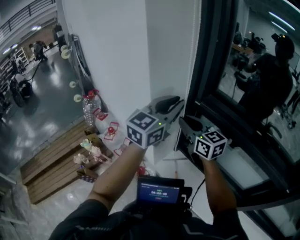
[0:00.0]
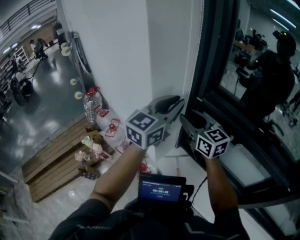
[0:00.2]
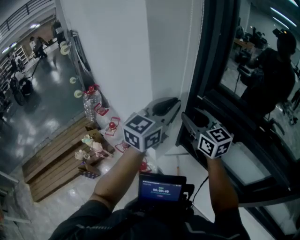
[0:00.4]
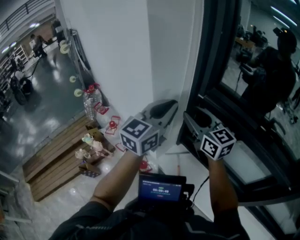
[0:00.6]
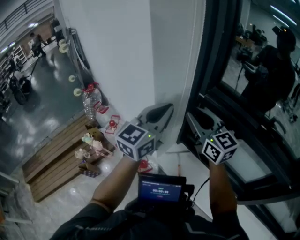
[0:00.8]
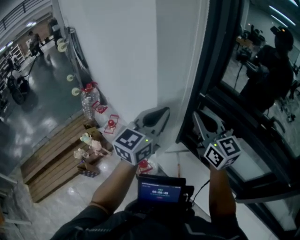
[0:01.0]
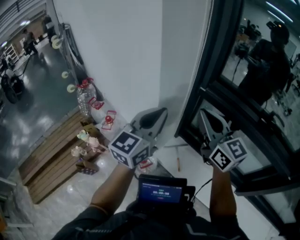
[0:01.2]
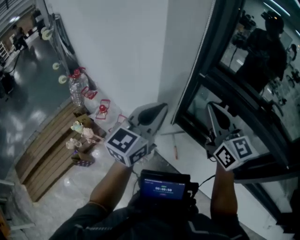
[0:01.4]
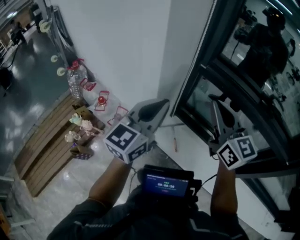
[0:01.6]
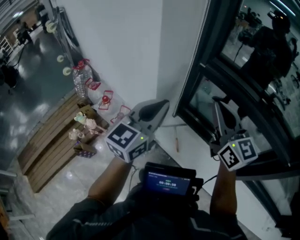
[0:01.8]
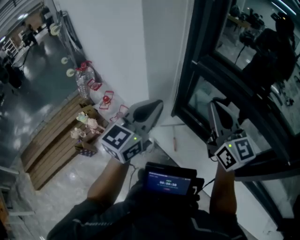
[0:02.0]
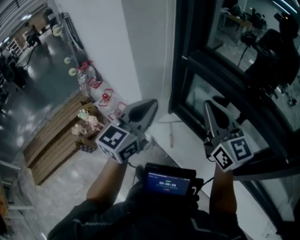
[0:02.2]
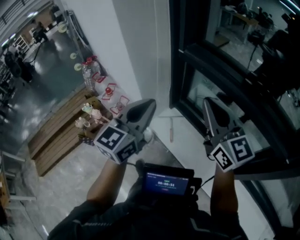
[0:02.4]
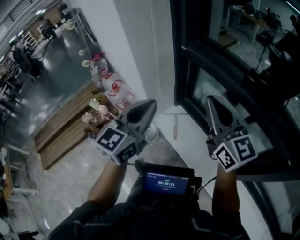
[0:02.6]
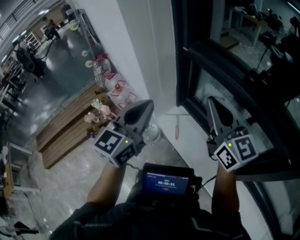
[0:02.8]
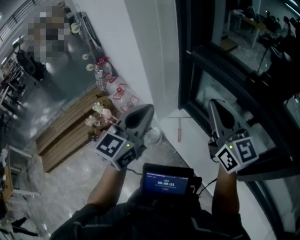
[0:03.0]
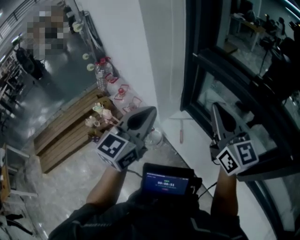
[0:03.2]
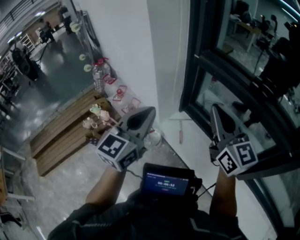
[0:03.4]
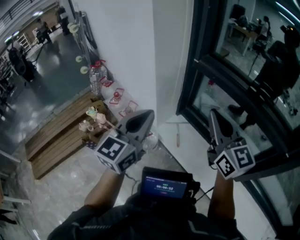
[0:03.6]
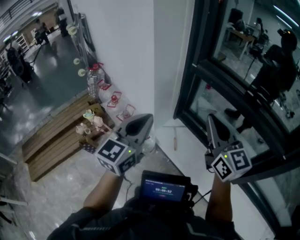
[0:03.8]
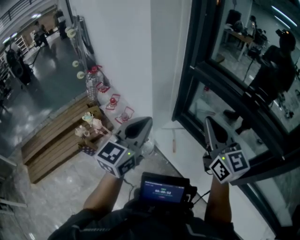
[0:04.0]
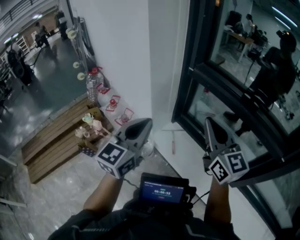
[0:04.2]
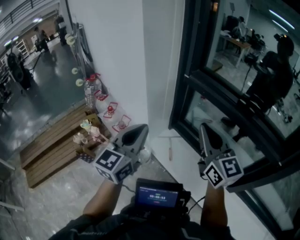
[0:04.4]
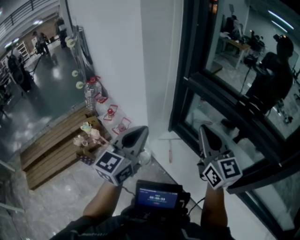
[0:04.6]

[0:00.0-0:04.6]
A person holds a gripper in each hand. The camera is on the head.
0:00.0 to 0:01.6: The left gripper moves backward, downward and to the left, about 15 cm; the right gripper shifts roughly 10 cm backward, and opens and closes again.
0:01.6 to 0:03.0: The two grippers go approximately 20 cm backward and to the right.
0:03.0 to 0:04.6: Both grippers travel together to the left, roughly 5 cm.

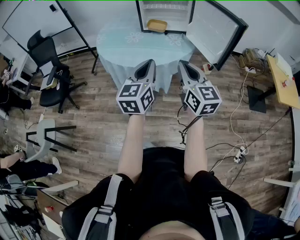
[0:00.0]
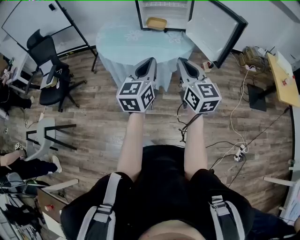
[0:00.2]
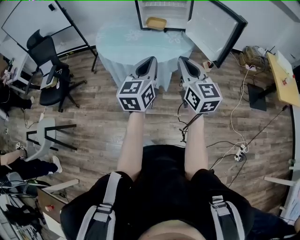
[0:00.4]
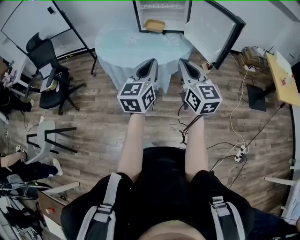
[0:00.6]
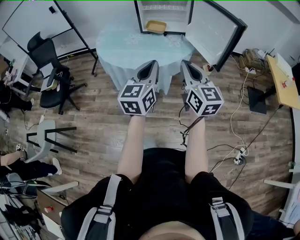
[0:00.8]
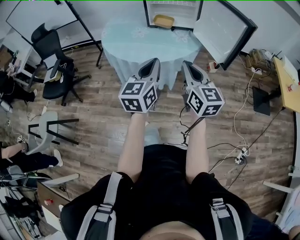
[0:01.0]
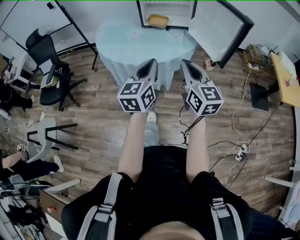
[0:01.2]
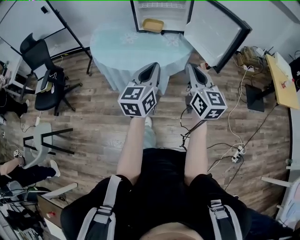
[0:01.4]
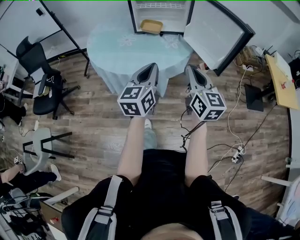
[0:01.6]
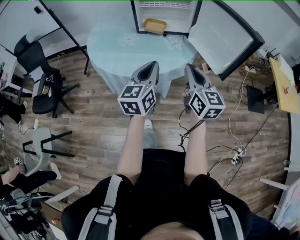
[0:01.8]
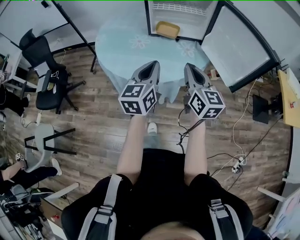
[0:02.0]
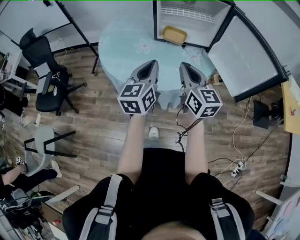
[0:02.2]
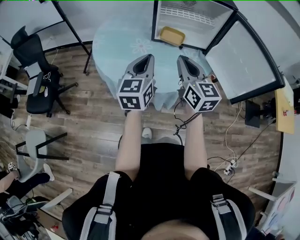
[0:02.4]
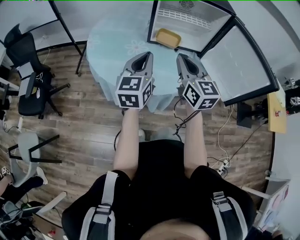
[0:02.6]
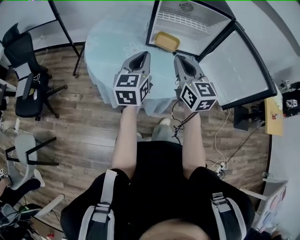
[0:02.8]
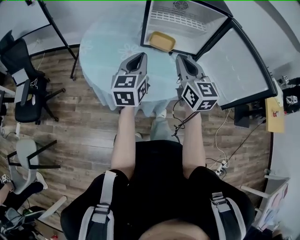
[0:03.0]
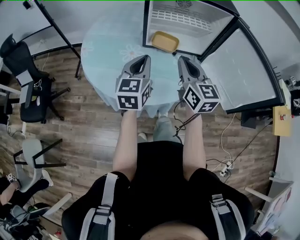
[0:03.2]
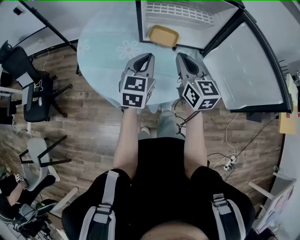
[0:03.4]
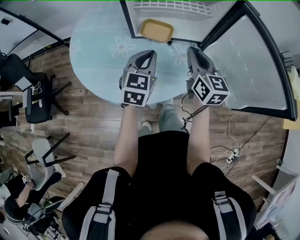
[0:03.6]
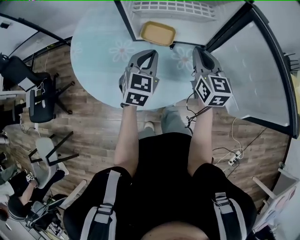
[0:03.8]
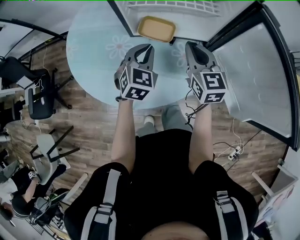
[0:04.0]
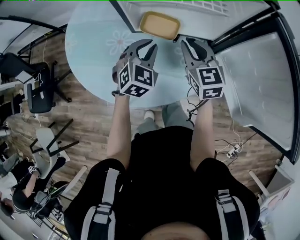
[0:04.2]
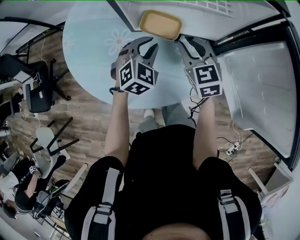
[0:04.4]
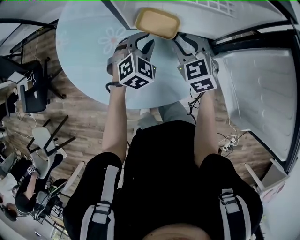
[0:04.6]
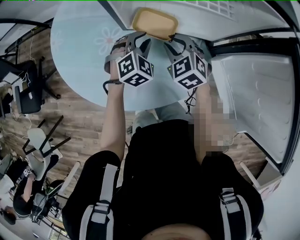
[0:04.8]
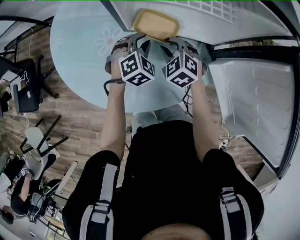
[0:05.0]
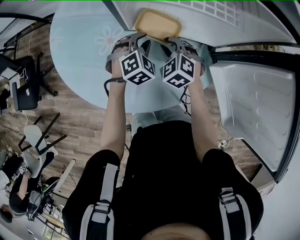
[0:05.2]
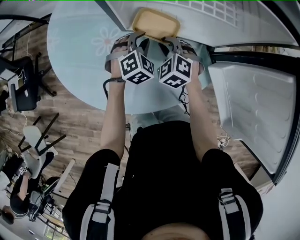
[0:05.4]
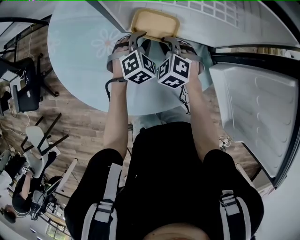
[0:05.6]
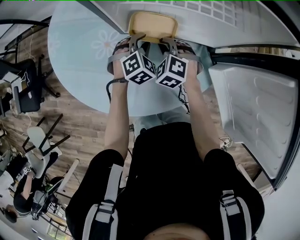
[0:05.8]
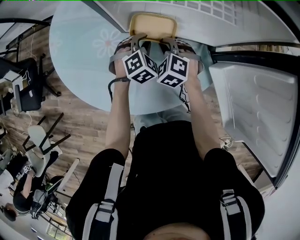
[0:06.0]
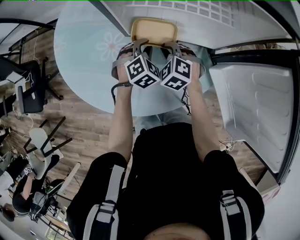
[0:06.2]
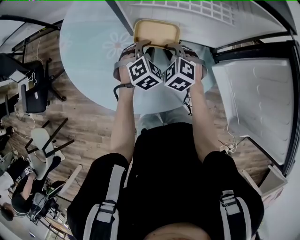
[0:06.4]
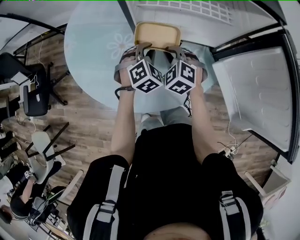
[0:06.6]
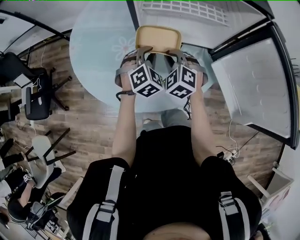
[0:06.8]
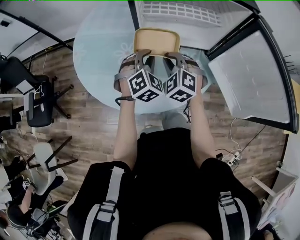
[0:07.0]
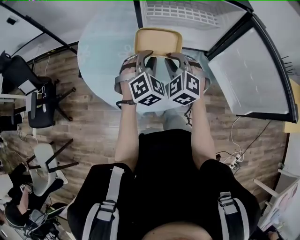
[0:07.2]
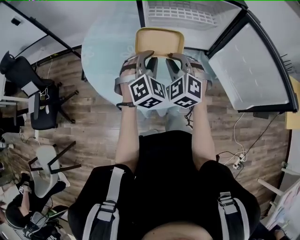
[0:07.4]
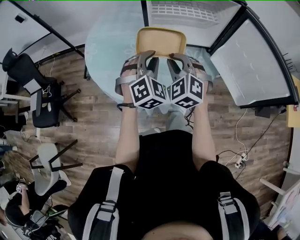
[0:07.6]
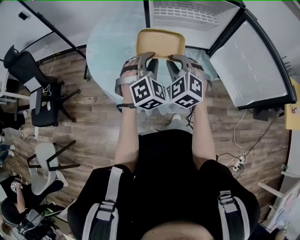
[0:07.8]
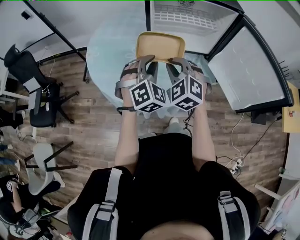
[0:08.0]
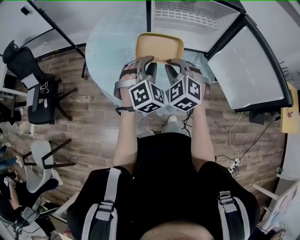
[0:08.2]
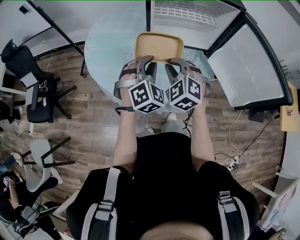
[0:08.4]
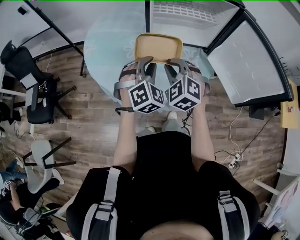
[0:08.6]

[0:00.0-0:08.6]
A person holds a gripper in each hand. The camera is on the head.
0:00.0 to 0:01.4: The left gripper shifts by some 5 cm; the right gripper moves some 5 cm.
0:01.4 to 0:02.8: Both grippers move forward and to the left, about 35 cm.
0:02.8 to 0:04.4: Both grippers move forward, downward and to the right, approximately 35 cm. The left gripper tilts its fingers some 30 degrees downward, and opens its fingers; the right gripper changes its angle by approximately 20 degrees, and opens.
0:04.4 to 0:05.8: The right gripper is displaced downward by approximately 15 cm, and swivels roughly 40 degrees. The left gripper travels downward and forward by approximately 15 cm.
0:05.8 to 0:07.2: The grippers both shift upward and backward by some 25 cm.
0:07.2 to 0:08.6: The two grippers go approximately 10 cm backward.

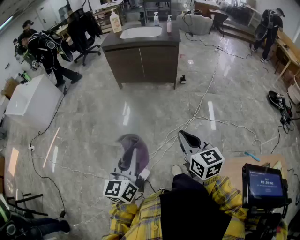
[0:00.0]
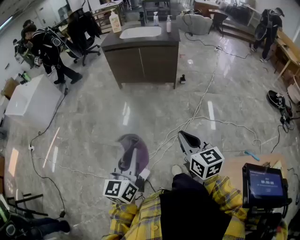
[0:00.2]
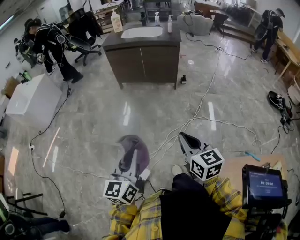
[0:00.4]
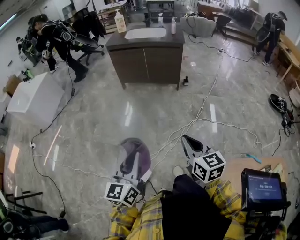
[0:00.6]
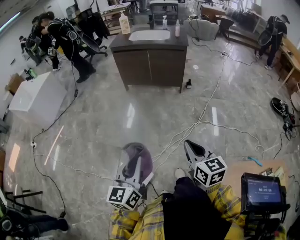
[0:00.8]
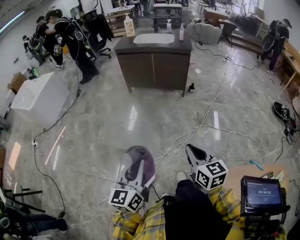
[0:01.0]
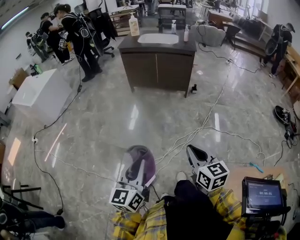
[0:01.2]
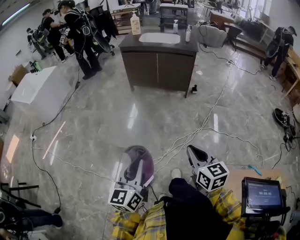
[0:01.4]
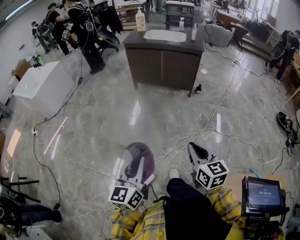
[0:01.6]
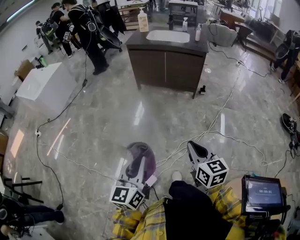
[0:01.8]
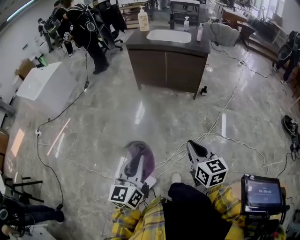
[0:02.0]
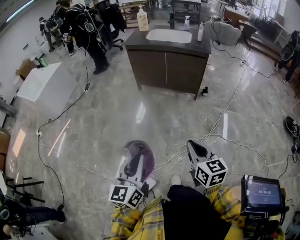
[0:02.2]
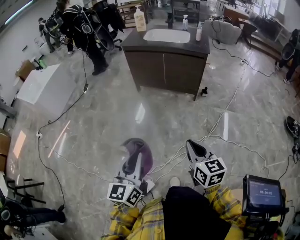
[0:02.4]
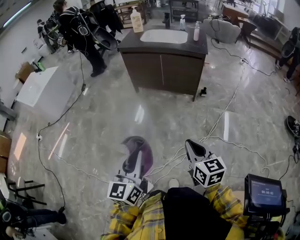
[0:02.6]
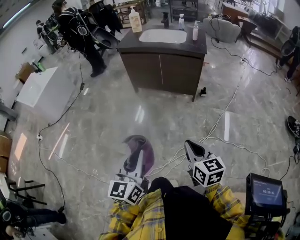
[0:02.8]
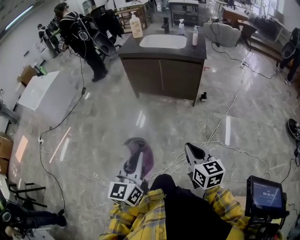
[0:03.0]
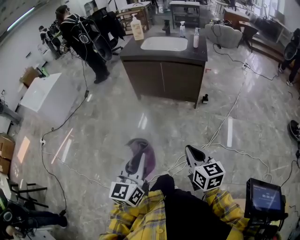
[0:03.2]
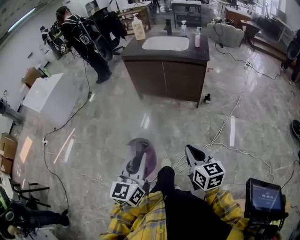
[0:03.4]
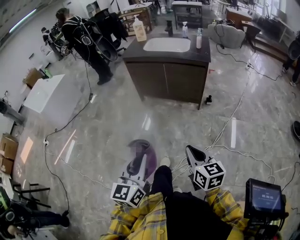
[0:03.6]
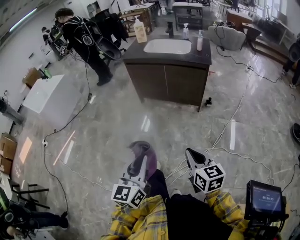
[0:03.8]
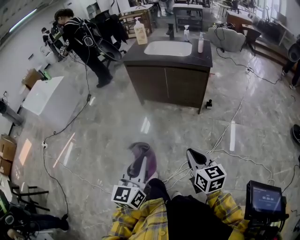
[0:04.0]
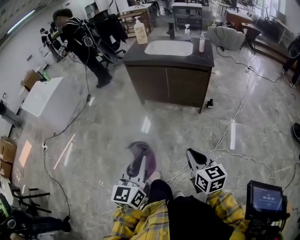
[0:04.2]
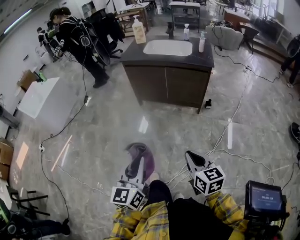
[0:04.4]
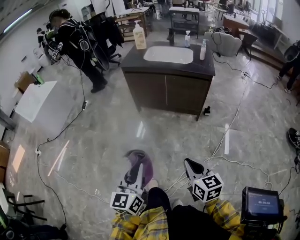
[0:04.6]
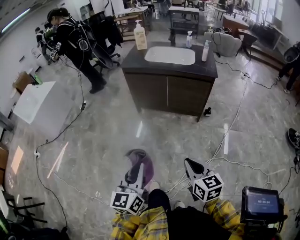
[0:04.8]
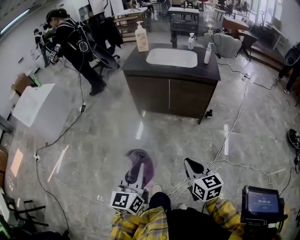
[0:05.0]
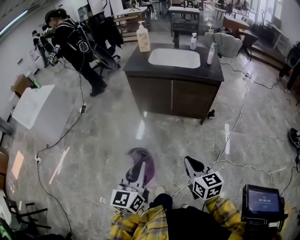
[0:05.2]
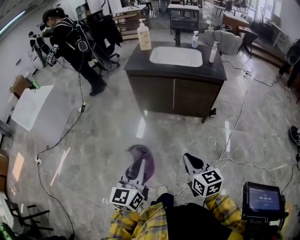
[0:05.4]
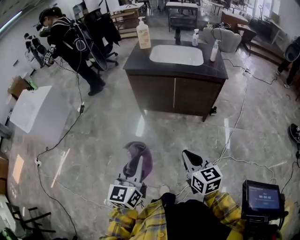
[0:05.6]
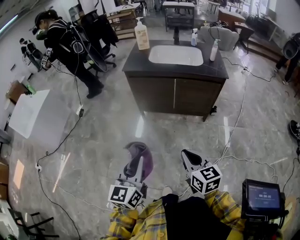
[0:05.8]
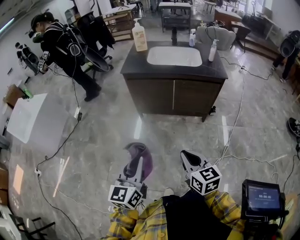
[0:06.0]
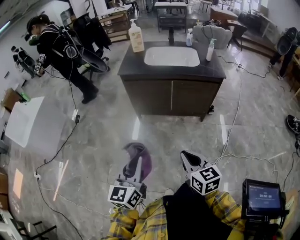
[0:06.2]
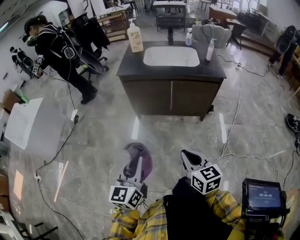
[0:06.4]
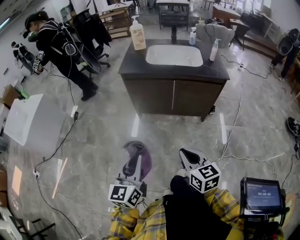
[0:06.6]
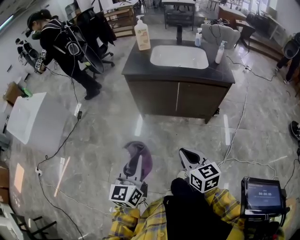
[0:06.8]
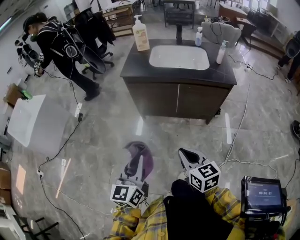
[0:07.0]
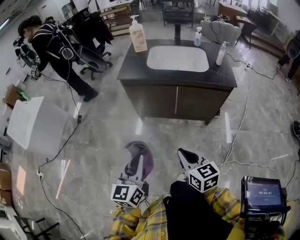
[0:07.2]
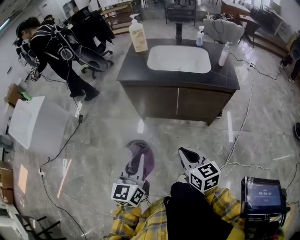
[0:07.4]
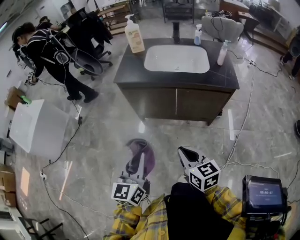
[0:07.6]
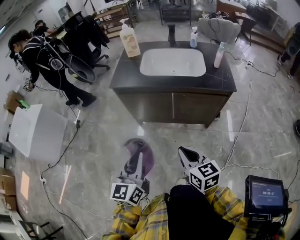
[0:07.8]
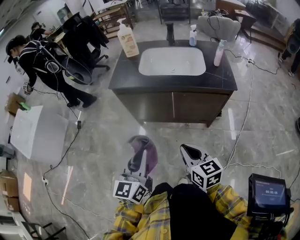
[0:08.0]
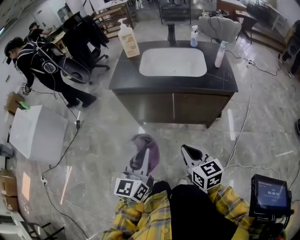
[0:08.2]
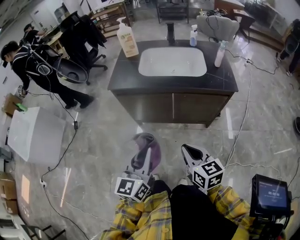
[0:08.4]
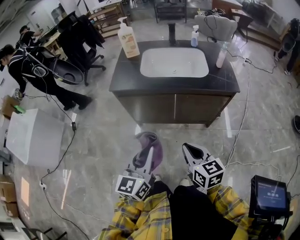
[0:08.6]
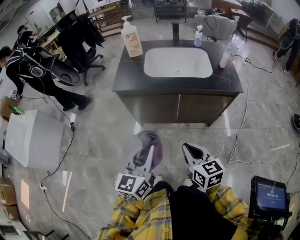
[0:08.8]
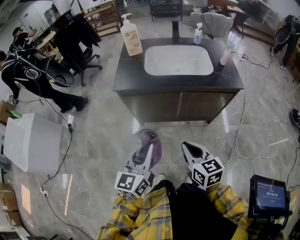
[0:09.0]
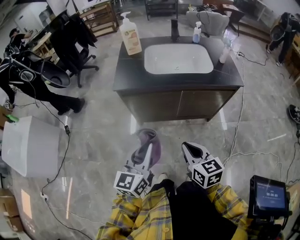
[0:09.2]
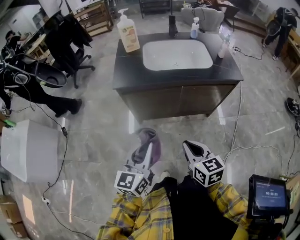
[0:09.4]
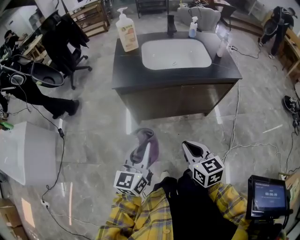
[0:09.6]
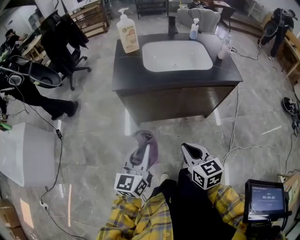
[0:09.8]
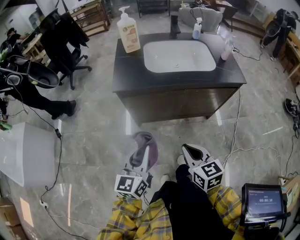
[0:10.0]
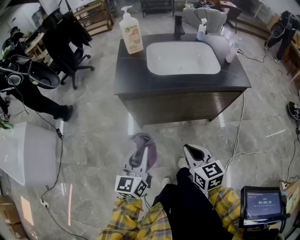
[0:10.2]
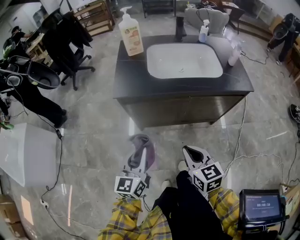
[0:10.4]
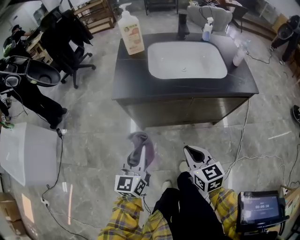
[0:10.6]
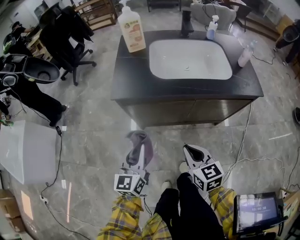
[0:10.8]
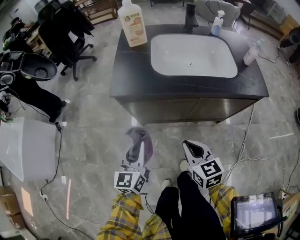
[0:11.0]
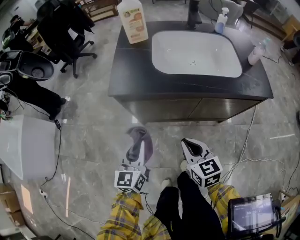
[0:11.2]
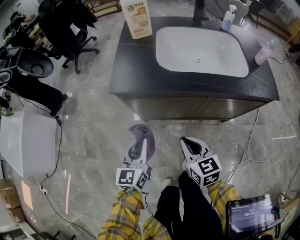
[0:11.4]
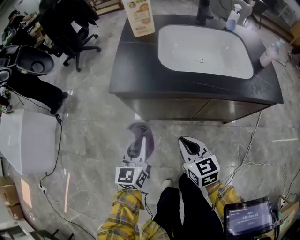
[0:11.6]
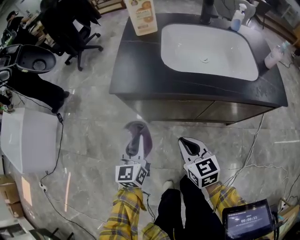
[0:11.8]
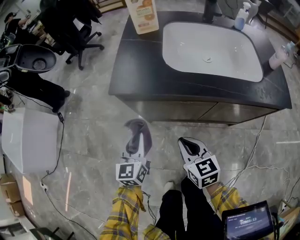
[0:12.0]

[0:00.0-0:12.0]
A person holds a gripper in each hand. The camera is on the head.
0:00.0 to 0:01.6: The grippers both shift to the left by some 5 cm.
0:01.6 to 0:03.0: The grippers both shift forward and to the right by approximately 20 cm.
0:03.0 to 0:04.4: The grippers both shift forward by some 5 cm.
0:04.4 to 0:06.0: The two grippers go roughly 25 cm forward and to the left.
0:06.0 to 0:07.6: Both grippers travel together forward, approximately 20 cm.
0:07.6 to 0:09.0: The left gripper heads forward, covering about 10 cm, while the right gripper is displaced forward and to the left by about 10 cm.
0:09.0 to 0:10.4: The left gripper heads to the left, downward and forward, covering about 15 cm. Meanwhile the right gripper goes some 10 cm to the left and forward.
0:10.4 to 0:12.0: The grippers both shift forward and downward by some 20 cm.
